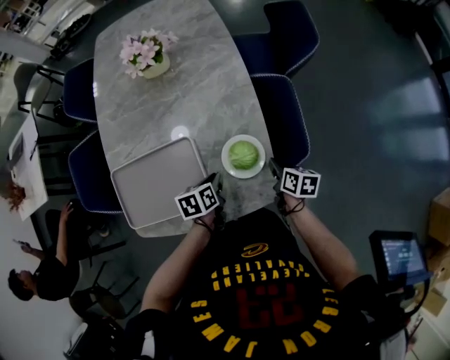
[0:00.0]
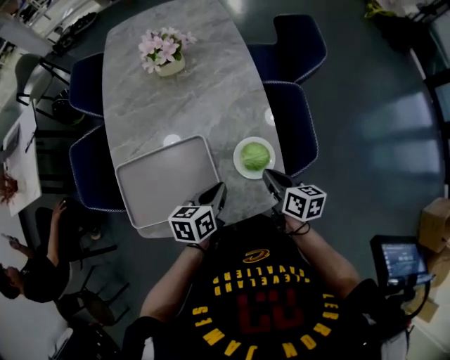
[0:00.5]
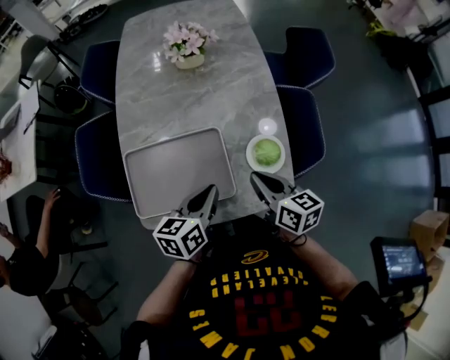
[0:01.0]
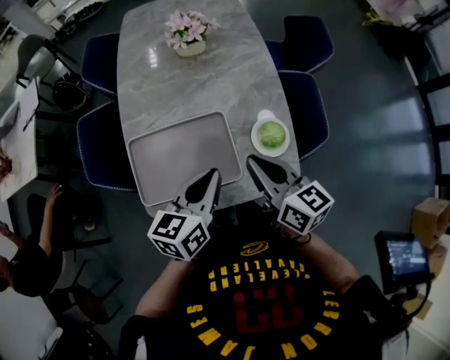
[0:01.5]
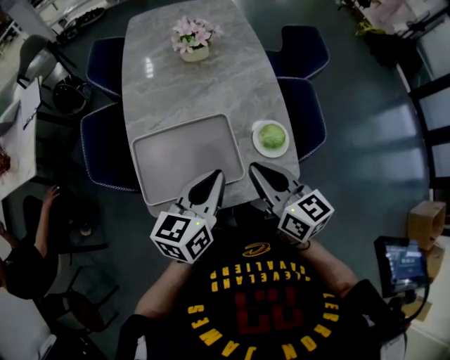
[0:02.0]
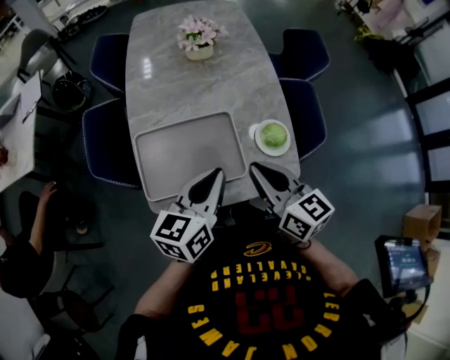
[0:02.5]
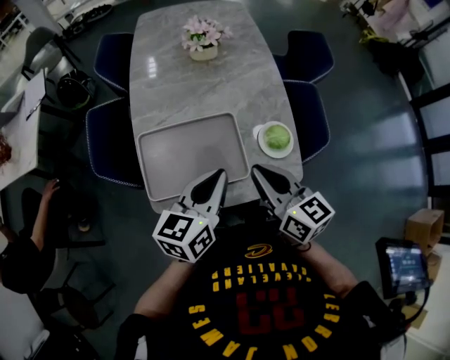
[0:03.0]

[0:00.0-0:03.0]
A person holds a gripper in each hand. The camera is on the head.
0:00.0 to 0:01.5: The grippers both shift upward and to the left by about 30 cm. The left gripper points its fingers roughly 30 degrees further upward. The right gripper points its fingers roughly 30 degrees further upward.
0:01.5 to 0:03.0: The right gripper moves approximately 5 cm.

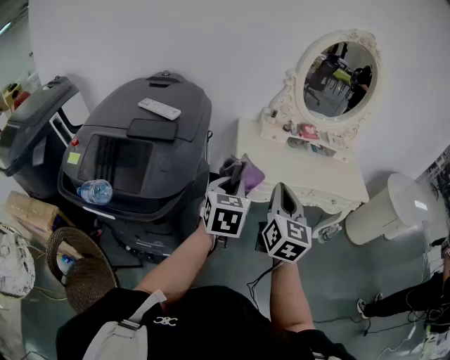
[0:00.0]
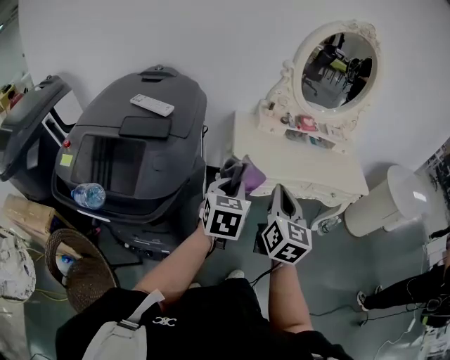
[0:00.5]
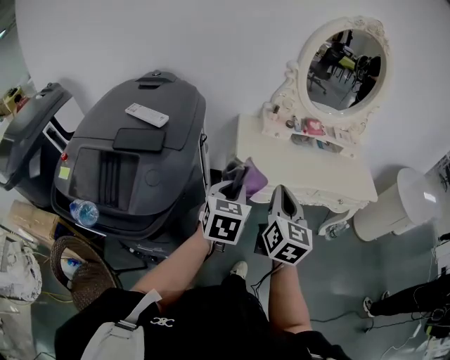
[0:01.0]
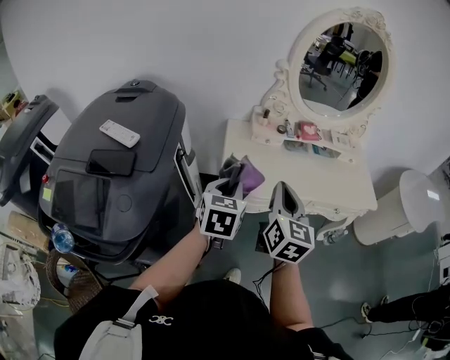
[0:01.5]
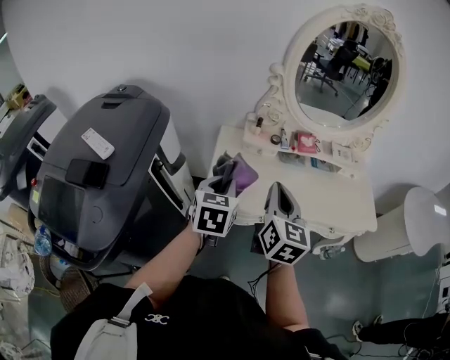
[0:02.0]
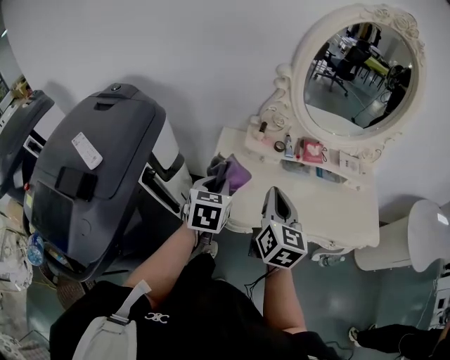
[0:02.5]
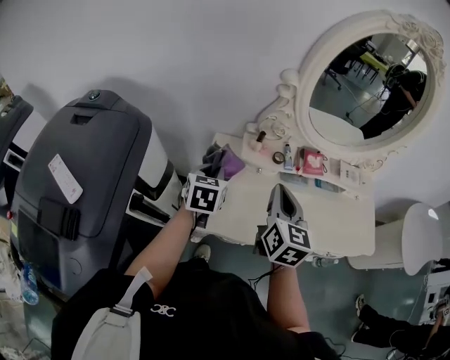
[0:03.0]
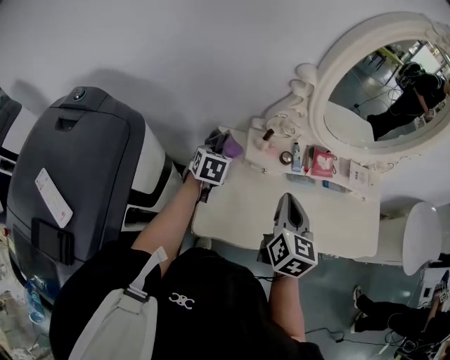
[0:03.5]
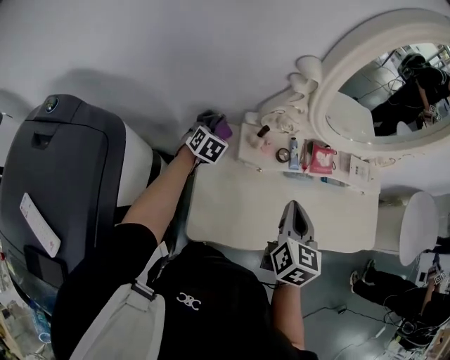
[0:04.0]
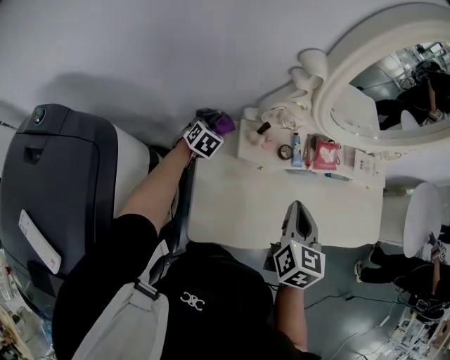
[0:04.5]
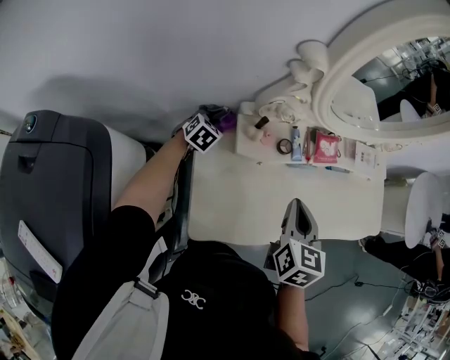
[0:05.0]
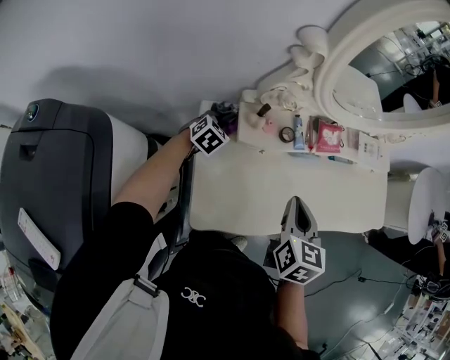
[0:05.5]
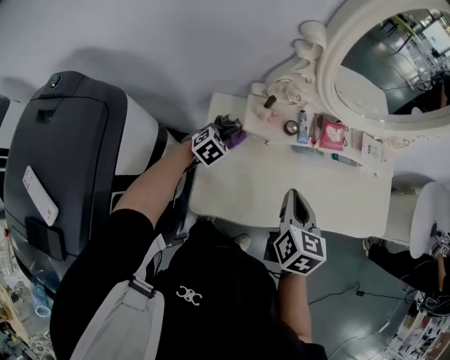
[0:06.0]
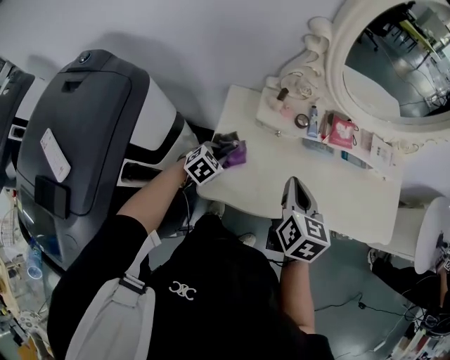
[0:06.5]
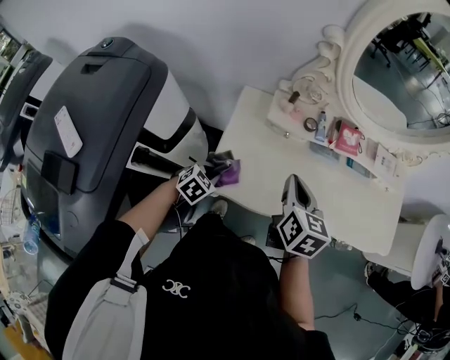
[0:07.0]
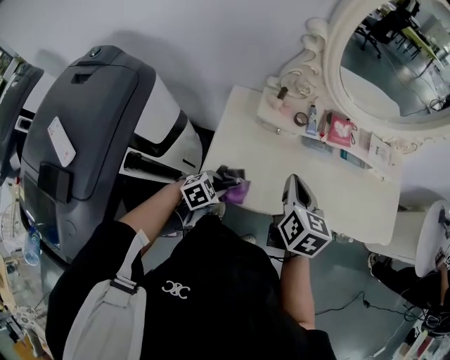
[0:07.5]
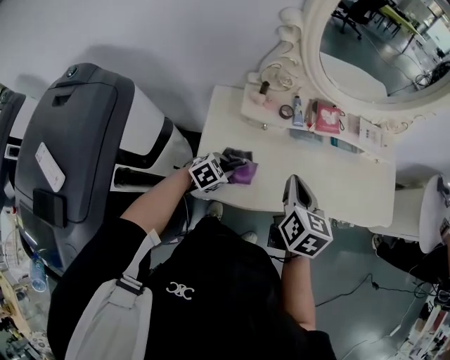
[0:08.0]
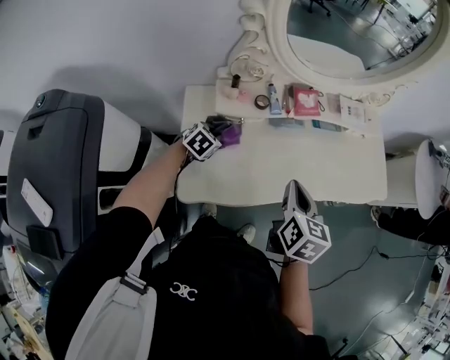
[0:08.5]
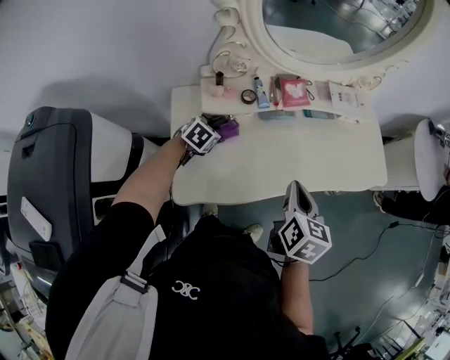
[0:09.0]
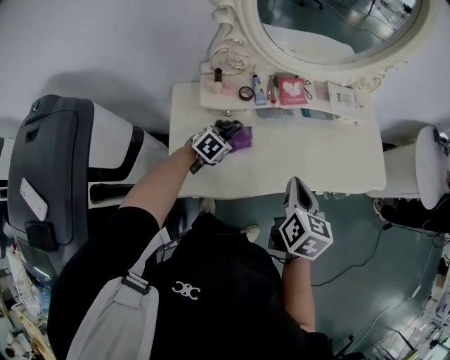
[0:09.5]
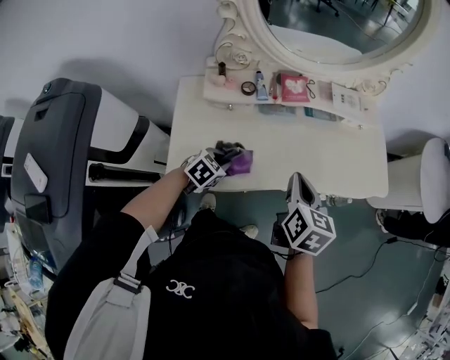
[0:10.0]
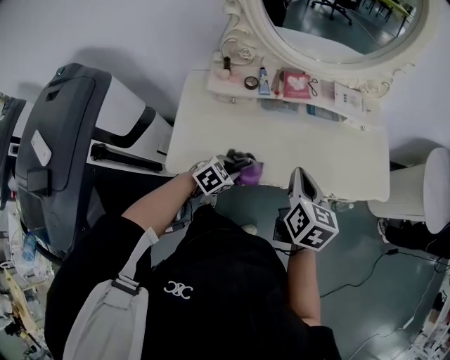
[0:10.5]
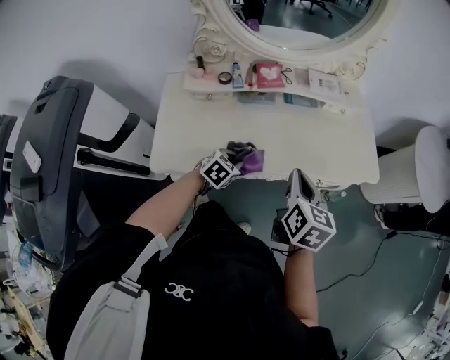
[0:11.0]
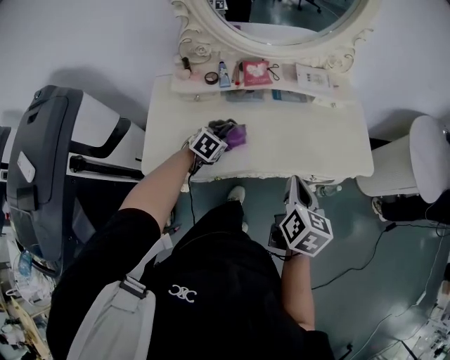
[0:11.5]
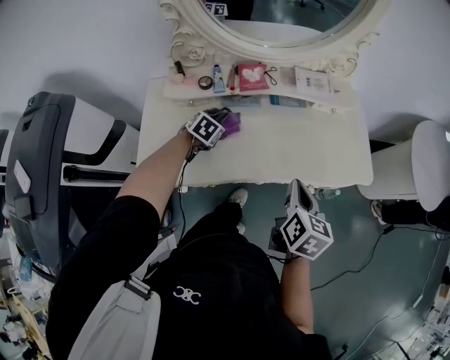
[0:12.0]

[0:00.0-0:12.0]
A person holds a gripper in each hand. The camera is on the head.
0:00.0 to 0:02.0: Both grippers travel together forward and to the right, approximately 25 cm.
0:02.0 to 0:04.0: The right gripper shifts approximately 20 cm forward and downward, and rotates approximately 20 degrees; the left gripper moves forward and downward, about 50 cm, and swivels roughly 30 degrees.
0:04.0 to 0:06.0: The right gripper ends up roughly 5 cm from where it was. The left gripper travels backward, to the right and downward by about 15 cm, and changes its angle by roughly 20 degrees.
0:06.0 to 0:08.0: The left gripper moves backward and to the right, approximately 15 cm.
0:08.0 to 0:10.0: Both grippers travel together to the right, some 10 cm. The left gripper goes forward and returns, roughly 15 cm each way.
0:10.0 to 0:12.0: The left gripper shifts roughly 15 cm forward, while the right gripper is displaced to the right by roughly 15 cm.

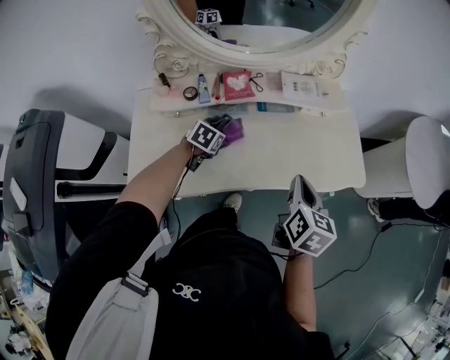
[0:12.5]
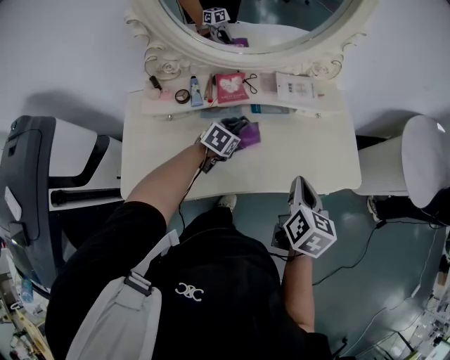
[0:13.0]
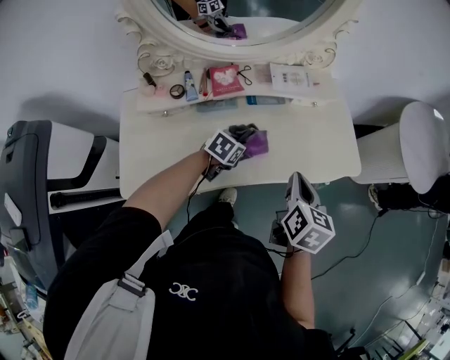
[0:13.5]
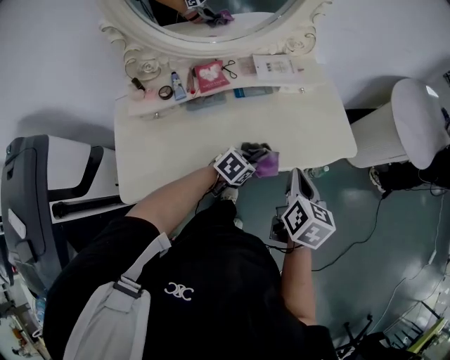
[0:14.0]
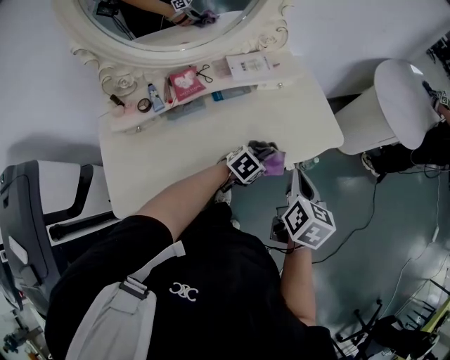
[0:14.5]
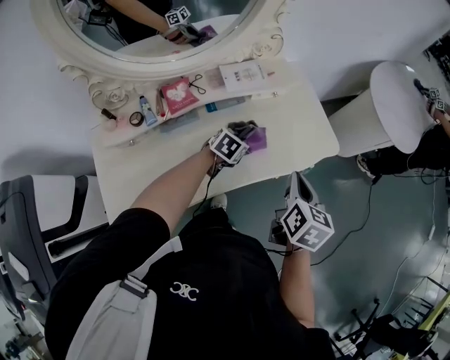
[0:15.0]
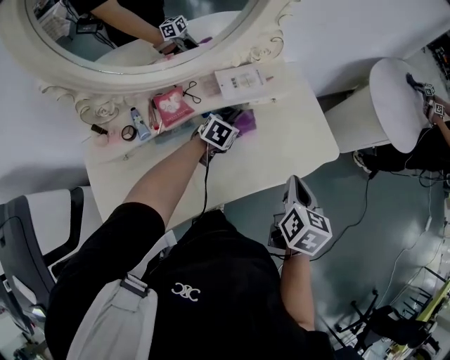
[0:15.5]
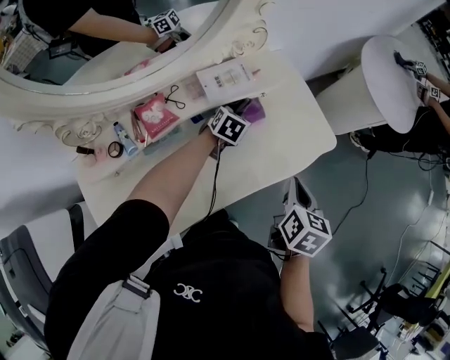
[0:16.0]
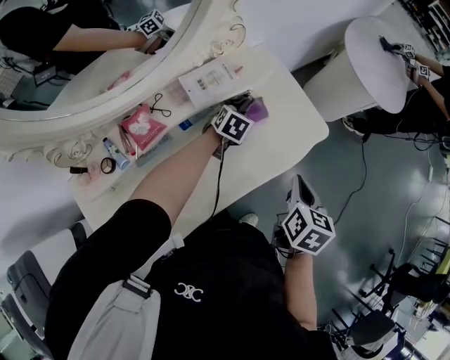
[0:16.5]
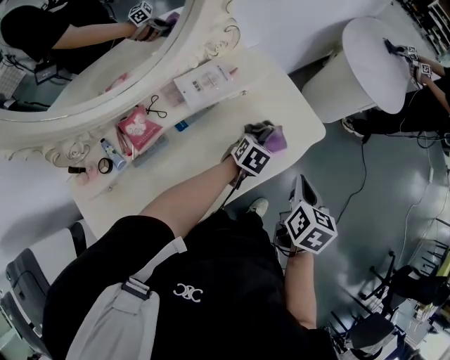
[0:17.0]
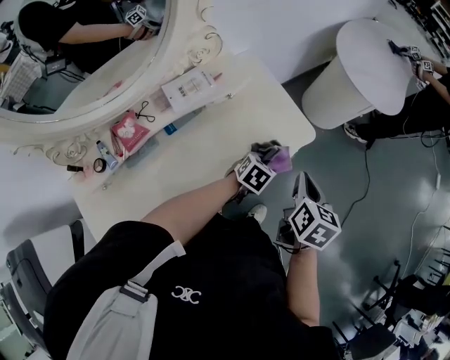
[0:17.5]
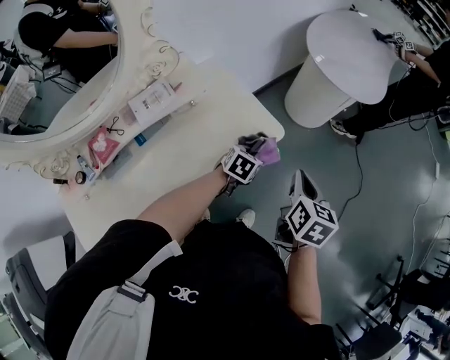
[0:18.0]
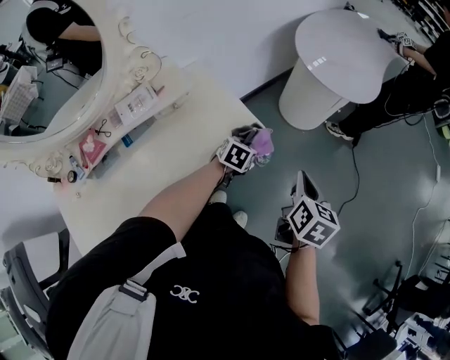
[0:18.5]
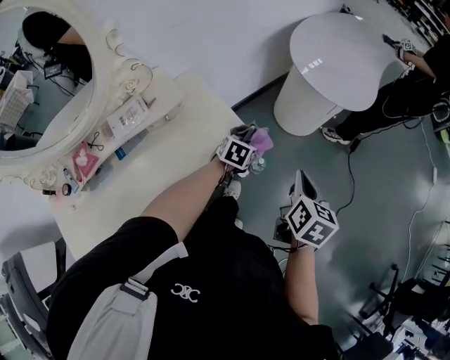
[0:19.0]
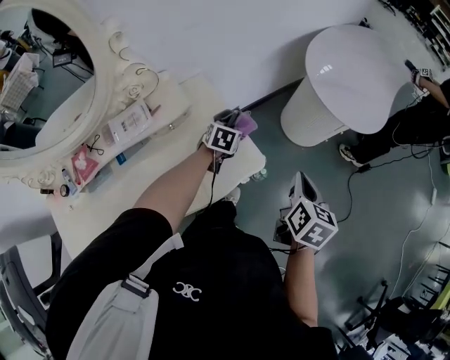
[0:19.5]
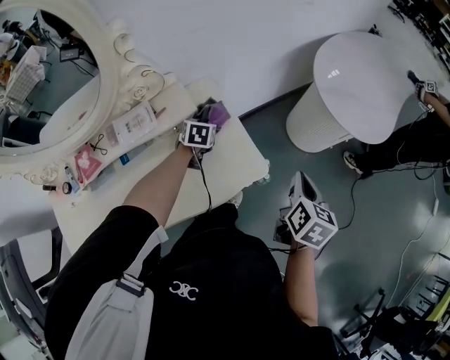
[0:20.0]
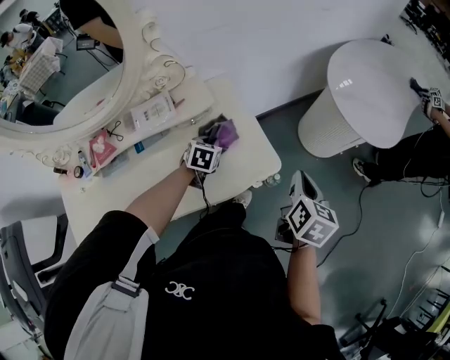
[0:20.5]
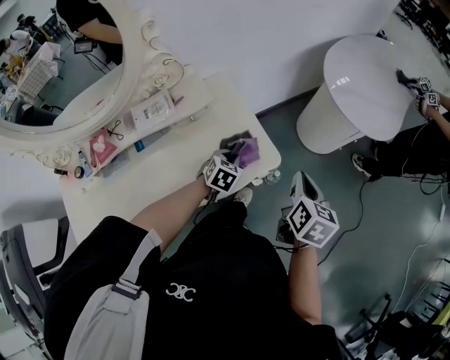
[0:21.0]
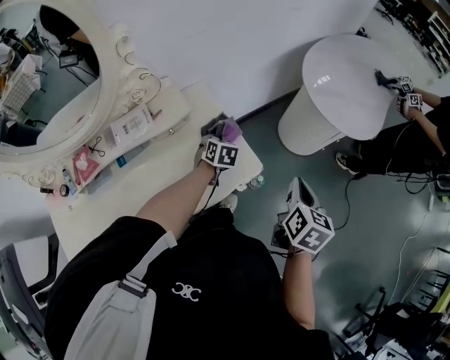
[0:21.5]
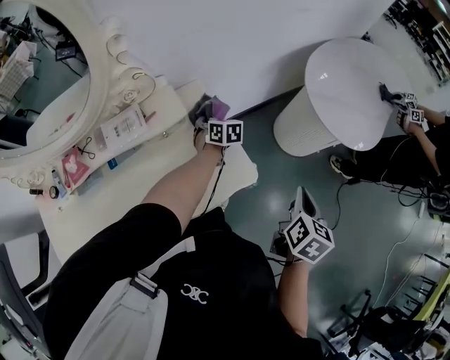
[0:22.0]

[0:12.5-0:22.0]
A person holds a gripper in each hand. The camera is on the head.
0:12.5 to 0:14.5: The left gripper ends up some 30 cm from where it was, and rotates roughly 40 degrees. The right gripper changes place by some 10 cm.
0:14.5 to 0:16.5: The right gripper shifts roughly 5 cm forward; the left gripper moves forward, approximately 20 cm.
0:16.5 to 0:18.0: The left gripper goes about 25 cm to the right. Meanwhile the right gripper is displaced to the right and forward by some 20 cm.
0:18.0 to 0:20.0: The right gripper moves approximately 15 cm; the left gripper ends up about 25 cm from where it was, and turns by roughly 30 degrees.
0:20.0 to 0:22.0: The left gripper moves roughly 15 cm backward and comes back, and turns by some 20 degrees.

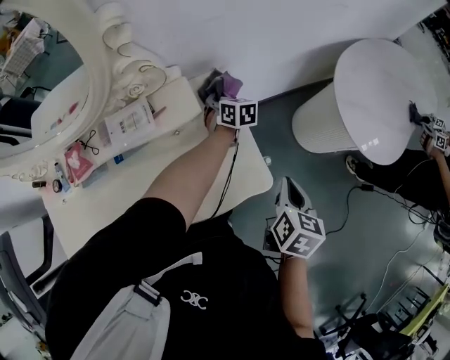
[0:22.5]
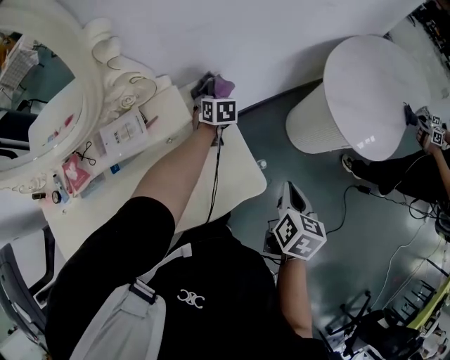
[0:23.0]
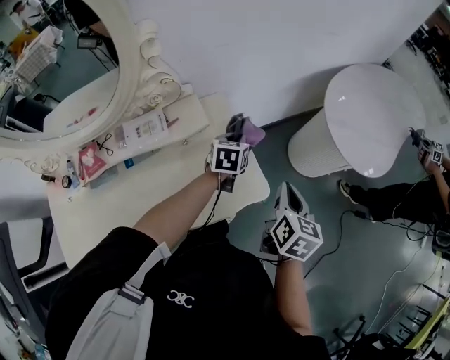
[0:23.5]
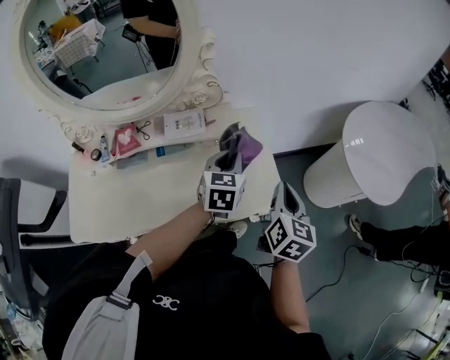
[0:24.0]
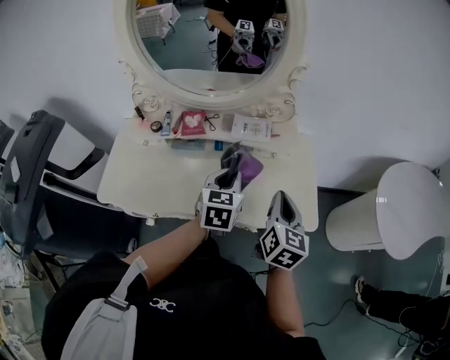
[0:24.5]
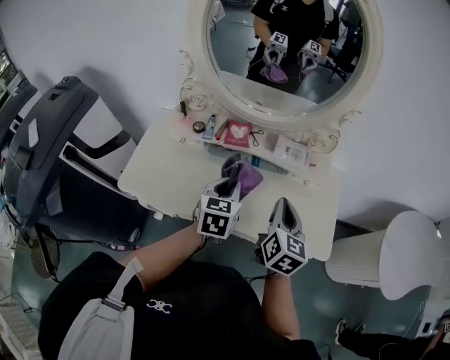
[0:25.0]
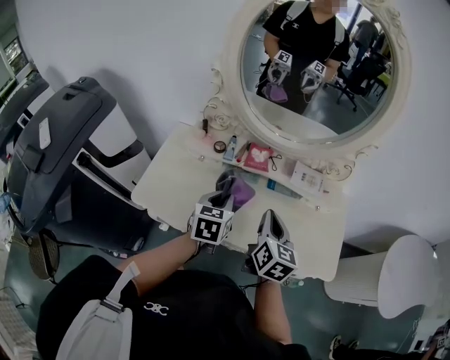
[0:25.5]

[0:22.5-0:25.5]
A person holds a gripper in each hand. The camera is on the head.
0:22.5 to 0:24.0: The left gripper moves backward and upward, approximately 30 cm, and swivels about 30 degrees; the right gripper travels upward and to the left by roughly 10 cm, and rotates some 20 degrees.
0:24.0 to 0:25.5: The right gripper changes place by some 40 cm, and rotates some 30 degrees. Meanwhile the left gripper changes place by some 40 cm, and rotates approximately 30 degrees.
